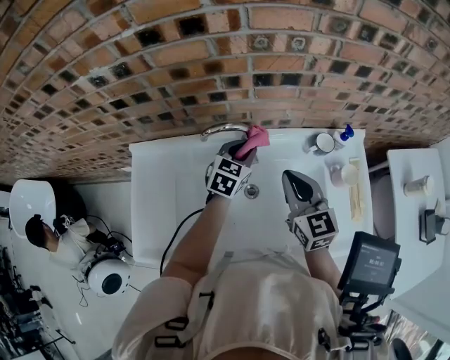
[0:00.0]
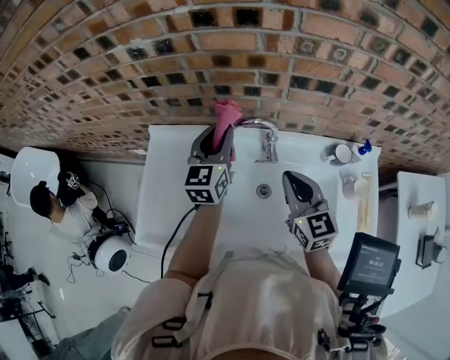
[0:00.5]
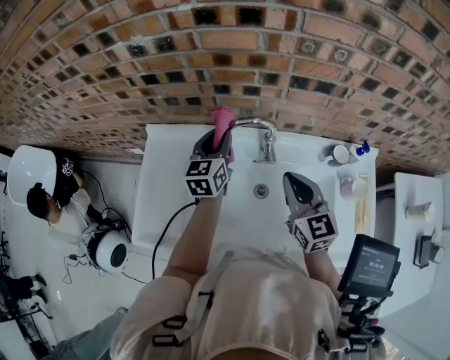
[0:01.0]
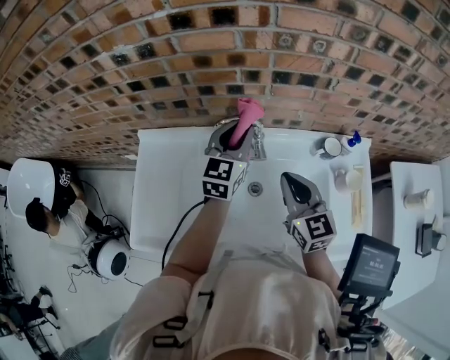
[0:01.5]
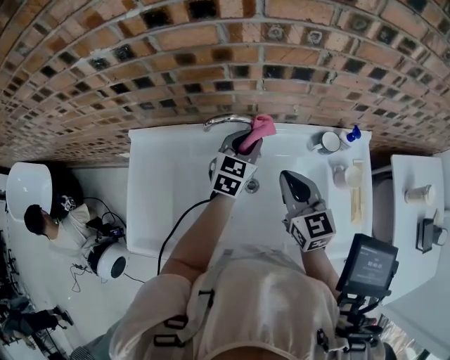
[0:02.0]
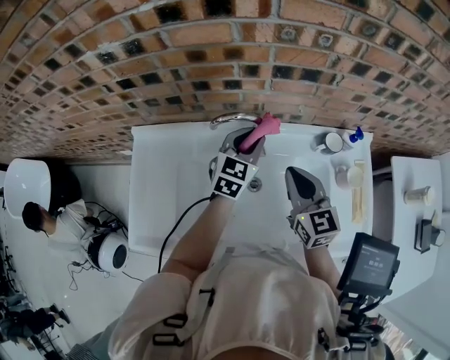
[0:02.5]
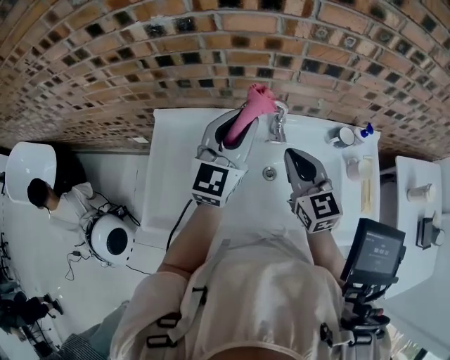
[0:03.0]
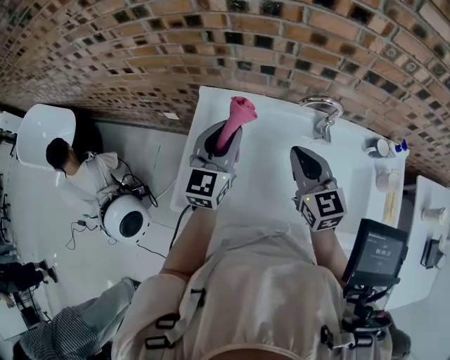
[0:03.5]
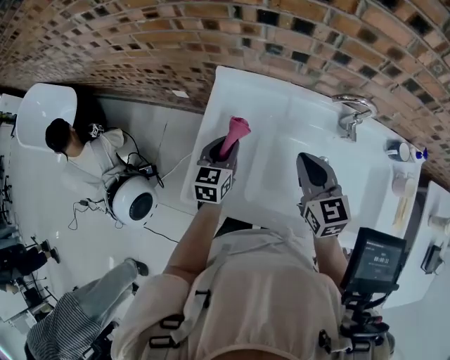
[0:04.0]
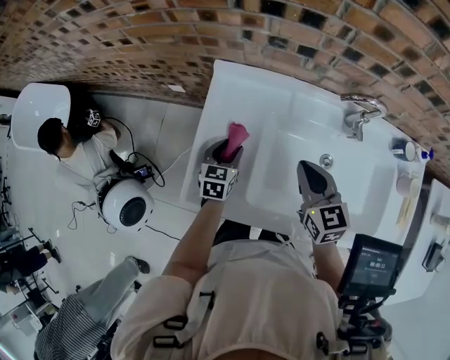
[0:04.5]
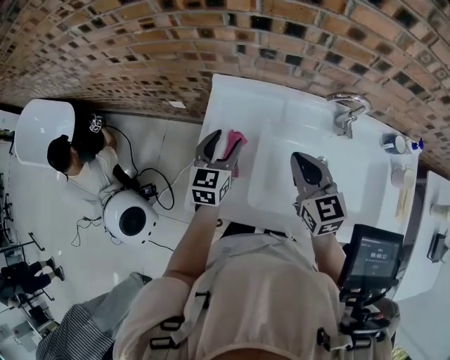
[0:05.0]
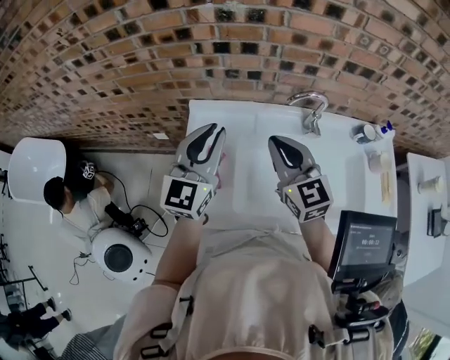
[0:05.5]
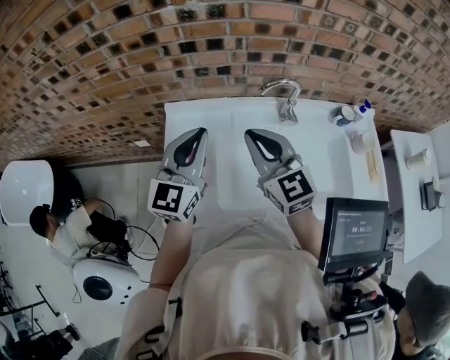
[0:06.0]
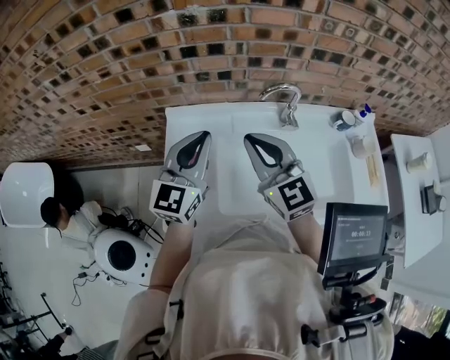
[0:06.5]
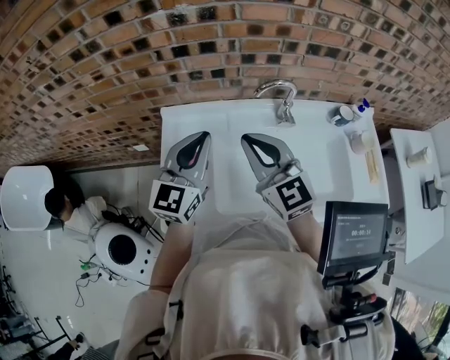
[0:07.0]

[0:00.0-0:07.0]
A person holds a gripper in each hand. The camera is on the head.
0:00.0 to 0:02.0: The left gripper moves about 15 cm to the left and comes back.
0:02.0 to 0:03.5: Both grippers travel together to the left, about 25 cm. The left gripper turns by roughly 30 degrees.
0:03.5 to 0:05.0: The left gripper shifts some 15 cm downward and to the left, and opens its fingers, while the right gripper is displaced to the left and downward by some 10 cm.
0:05.0 to 0:07.0: The left gripper moves upward and to the right, some 20 cm, swivels roughly 30 degrees, and closes; the right gripper goes about 10 cm upward, and turns by roughly 20 degrees.

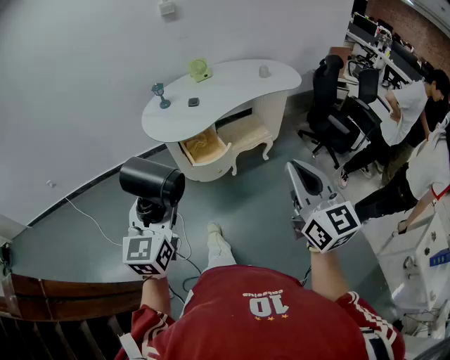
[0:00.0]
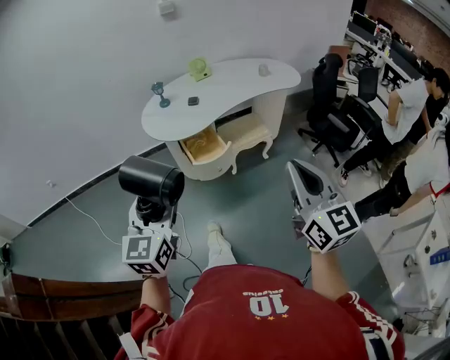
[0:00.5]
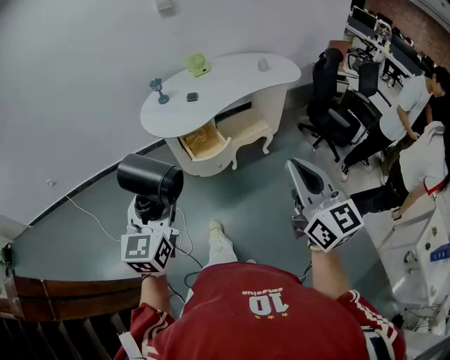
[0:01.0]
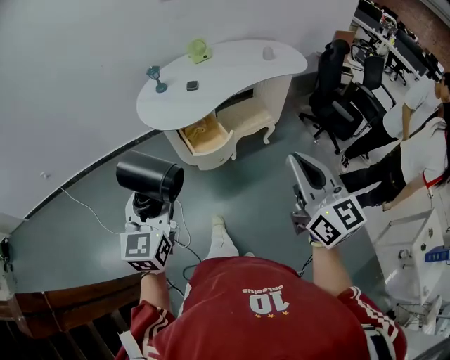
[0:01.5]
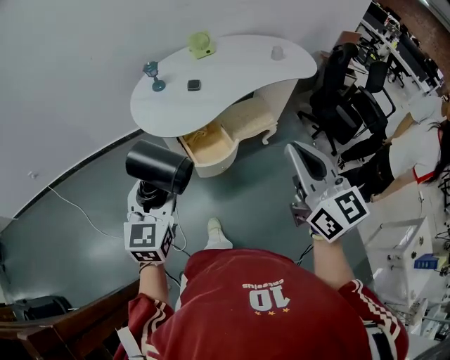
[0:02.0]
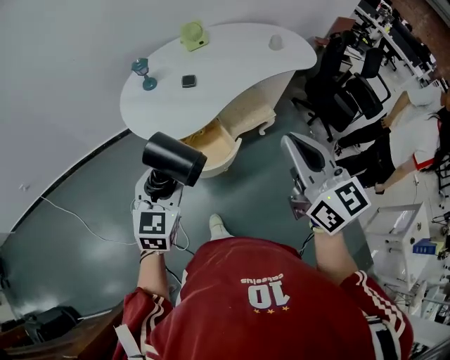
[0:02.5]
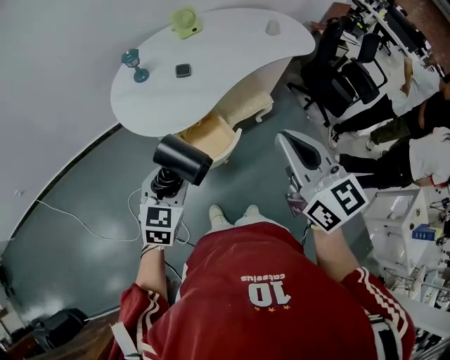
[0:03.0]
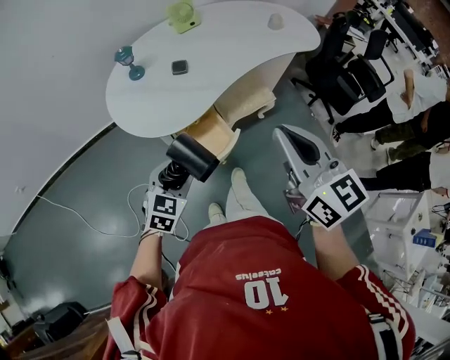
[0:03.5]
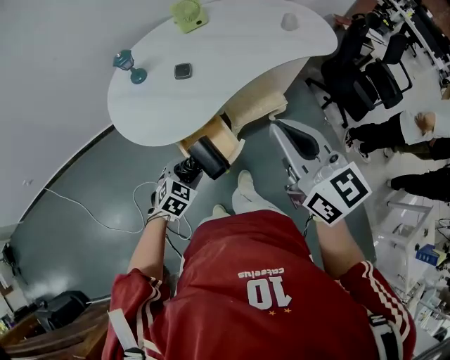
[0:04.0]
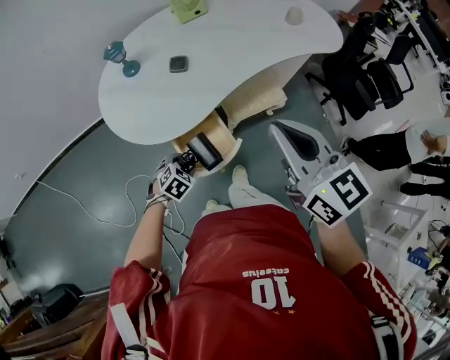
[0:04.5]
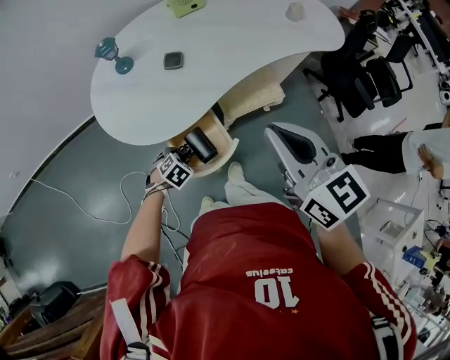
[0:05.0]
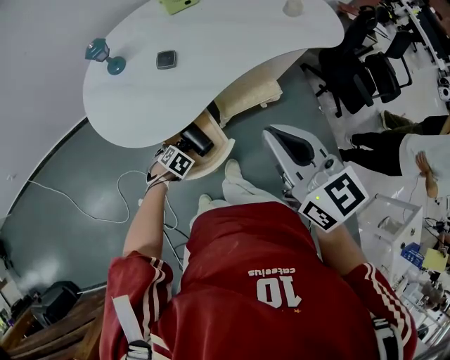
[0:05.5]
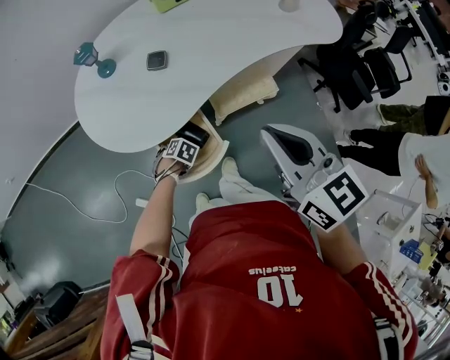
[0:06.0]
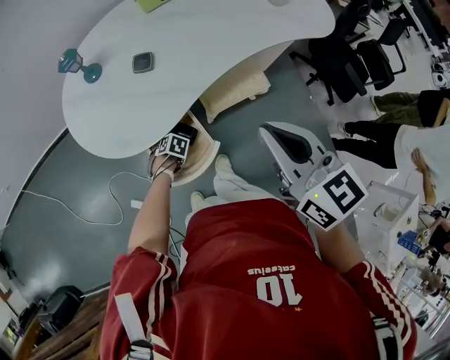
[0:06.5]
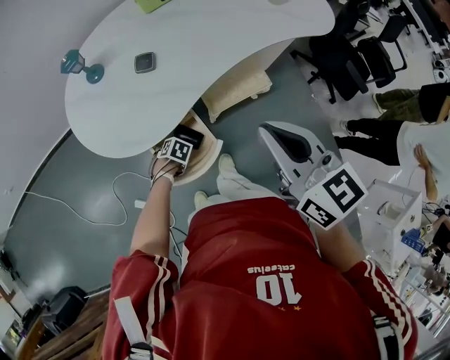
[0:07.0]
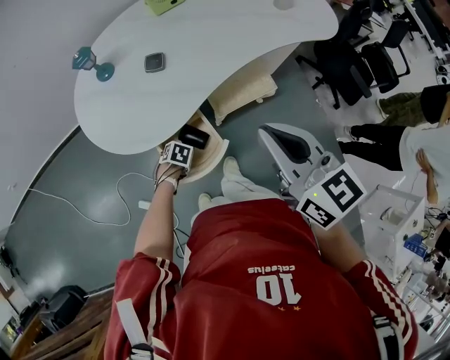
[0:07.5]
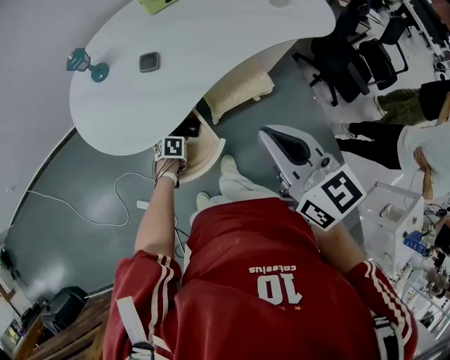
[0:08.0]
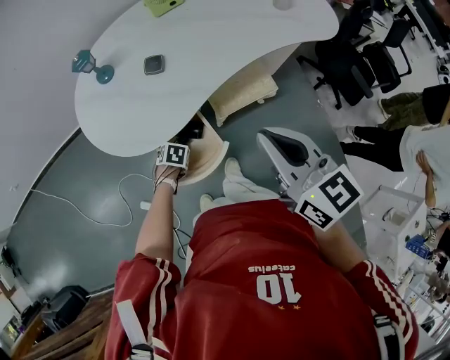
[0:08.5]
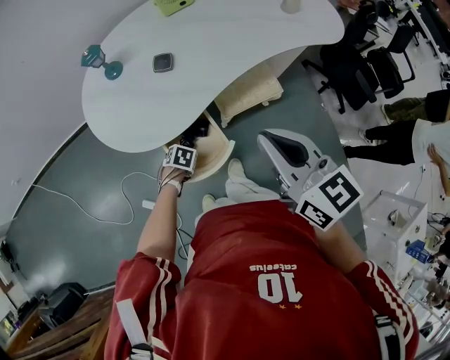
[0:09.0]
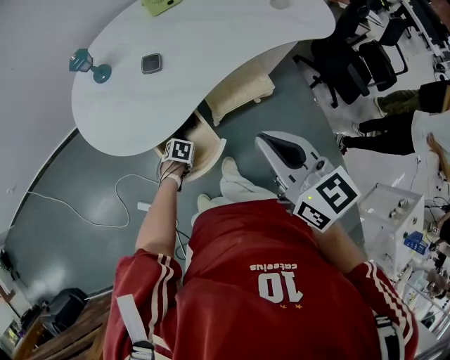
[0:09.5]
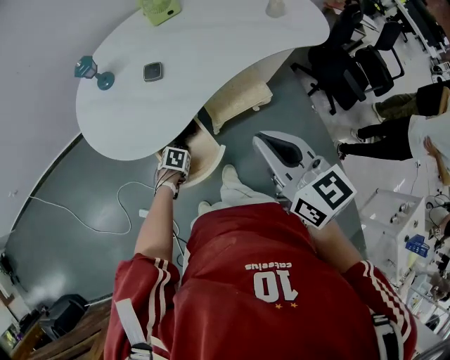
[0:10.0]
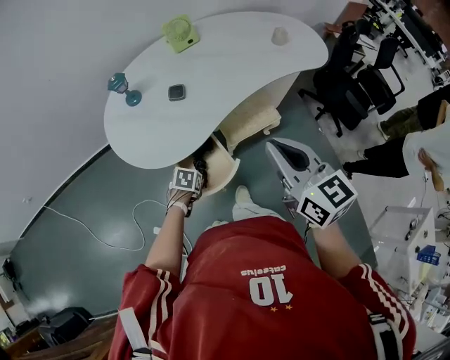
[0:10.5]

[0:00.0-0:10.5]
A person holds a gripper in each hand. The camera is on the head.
0:00.0 to 0:02.0: The two grippers go some 20 cm forward.
0:02.0 to 0:04.0: The right gripper is displaced forward and downward by roughly 25 cm. The left gripper moves downward and forward, some 35 cm, and points its fingers roughly 40 degrees further downward.
0:04.0 to 0:06.5: The left gripper is displaced downward by approximately 25 cm, and tips its fingers downward by about 40 degrees, while the right gripper changes place by approximately 15 cm.
0:06.5 to 0:08.5: There are only small adjustments of the grippers.
0:08.5 to 0:10.5: The left gripper travels upward by approximately 10 cm. Meanwhile the right gripper travels upward by approximately 5 cm.

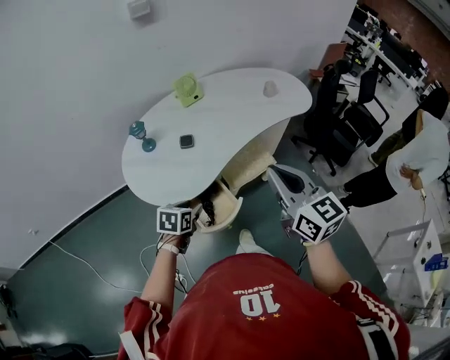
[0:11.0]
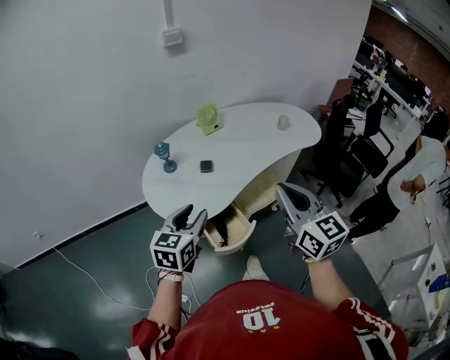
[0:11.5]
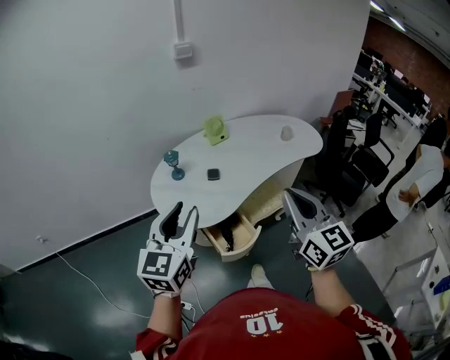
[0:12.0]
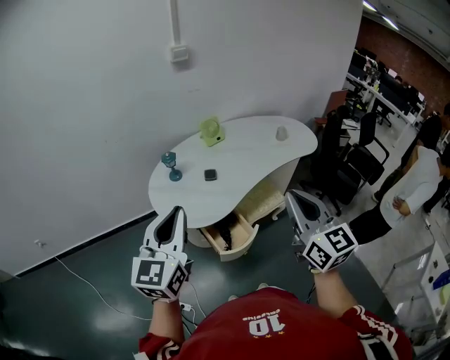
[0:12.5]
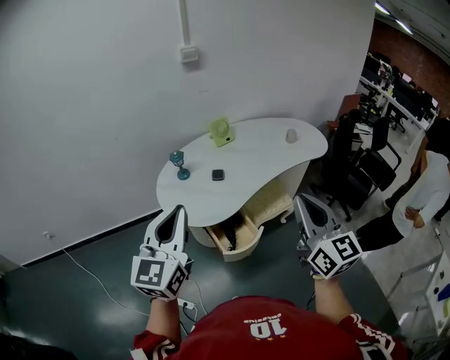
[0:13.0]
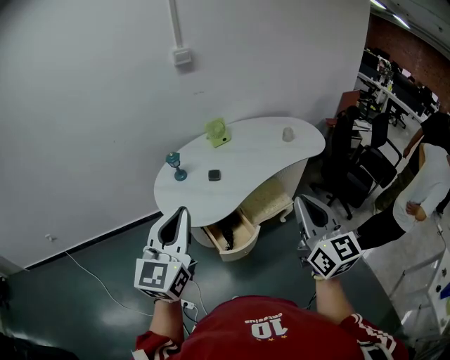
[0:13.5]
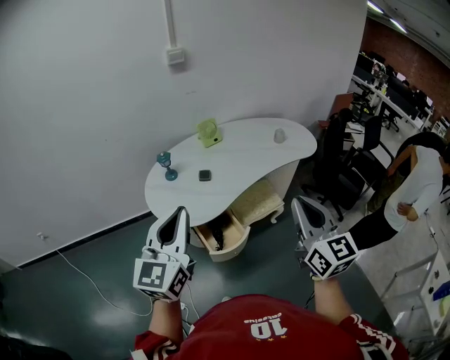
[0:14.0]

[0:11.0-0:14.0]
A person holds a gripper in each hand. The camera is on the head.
0:11.0 to 0:12.5: The right gripper travels backward and upward by roughly 15 cm, while the left gripper travels upward by about 35 cm, points its fingers some 50 degrees further upward, and closes its fingers.
0:12.5 to 0:14.0: Both grippers travel together to the right, some 10 cm.

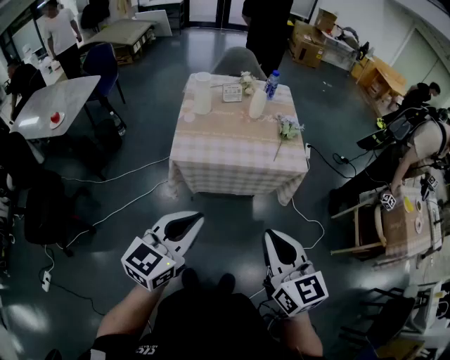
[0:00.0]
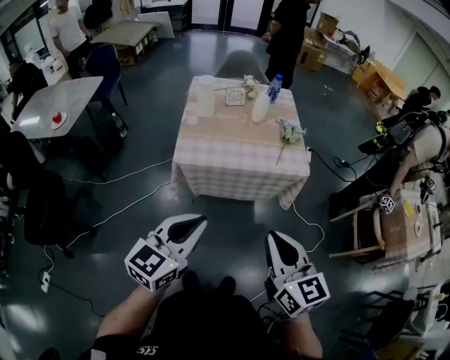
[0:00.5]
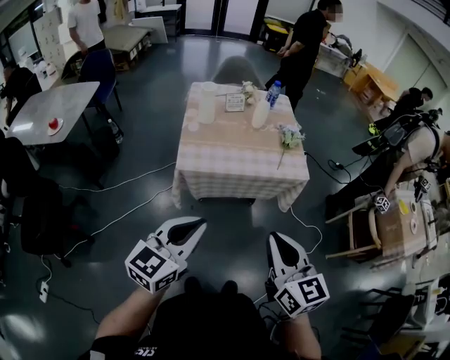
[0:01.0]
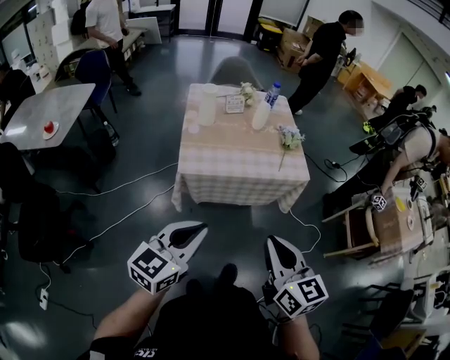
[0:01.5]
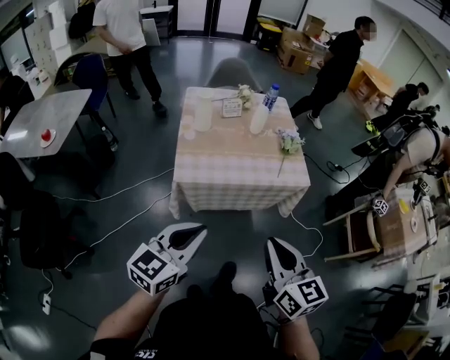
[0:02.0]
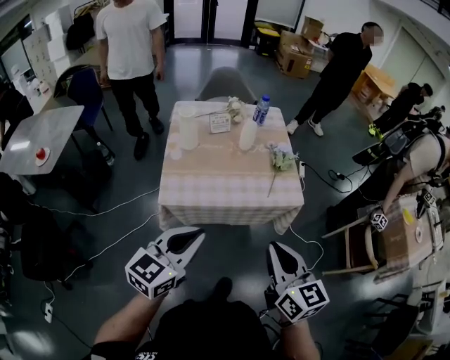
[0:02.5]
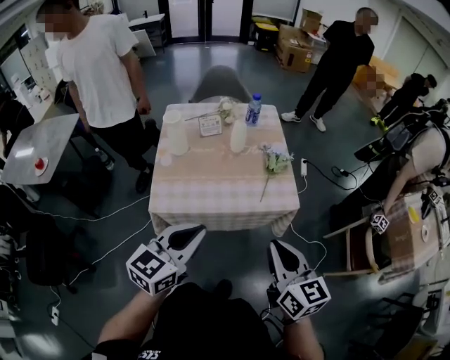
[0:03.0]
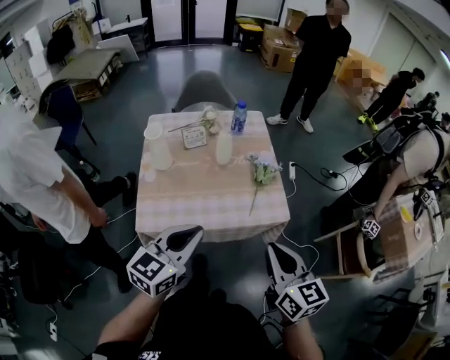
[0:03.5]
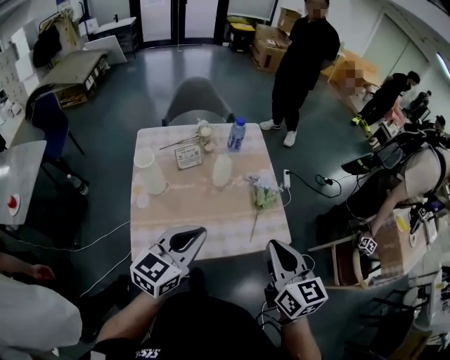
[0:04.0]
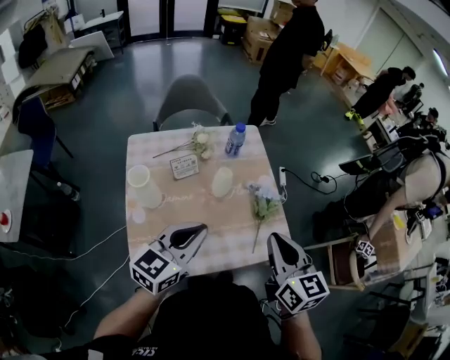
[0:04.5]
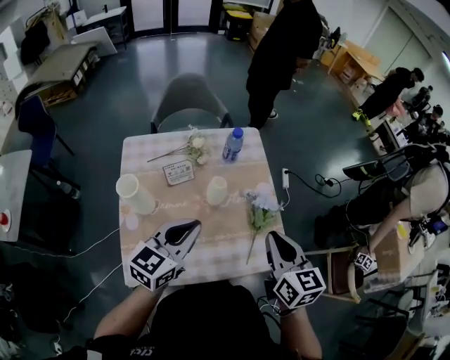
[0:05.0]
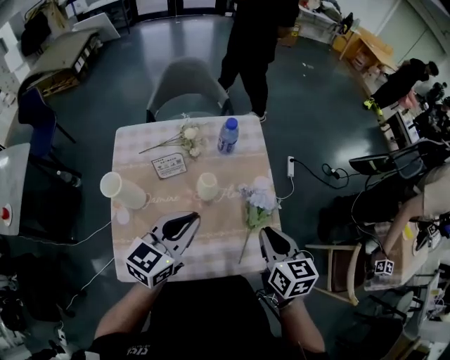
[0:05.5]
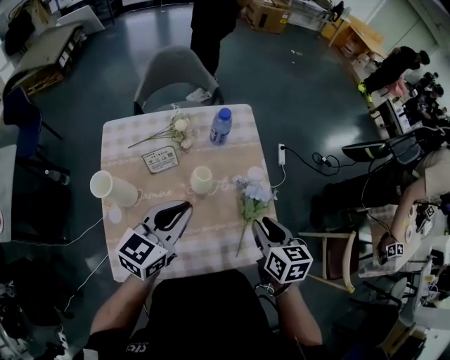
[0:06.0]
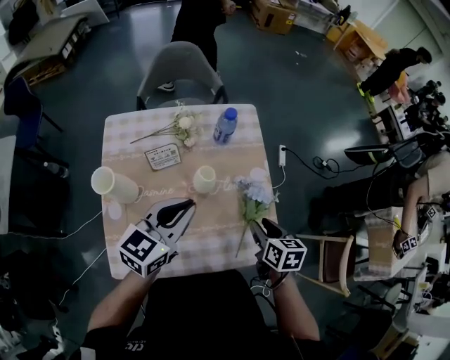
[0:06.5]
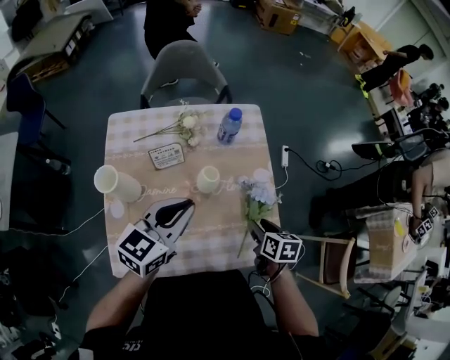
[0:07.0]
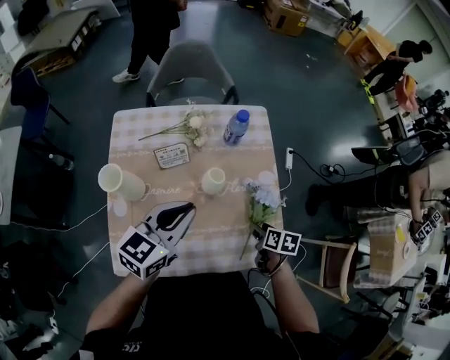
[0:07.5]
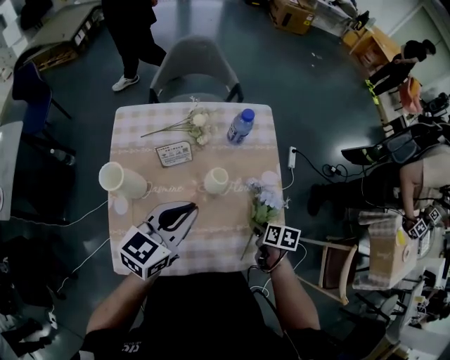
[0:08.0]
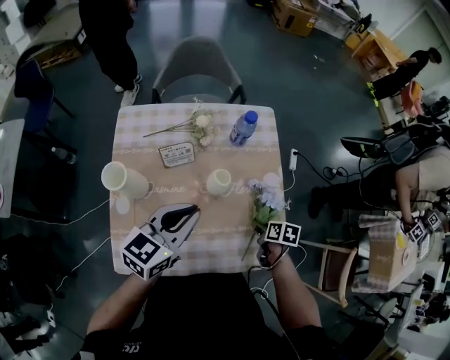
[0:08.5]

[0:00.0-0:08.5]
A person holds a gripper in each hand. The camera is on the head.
0:00.0 to 0:02.0: Both grippers travel together to the left, roughly 5 cm.
0:02.0 to 0:04.0: Both grippers move forward, about 35 cm.
0:04.0 to 0:06.5: The right gripper goes about 30 cm forward and downward, tilts its fingers approximately 30 degrees downward, and opens its fingers; the left gripper goes about 20 cm forward.
0:06.5 to 0:08.5: The right gripper travels downward by some 15 cm, and changes its angle by approximately 30 degrees.
